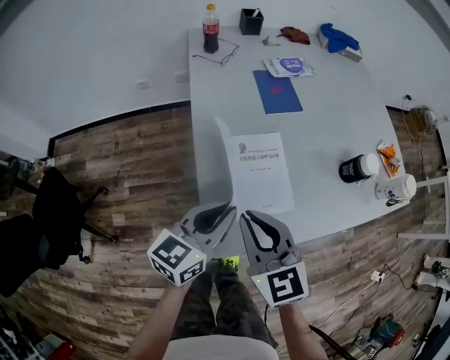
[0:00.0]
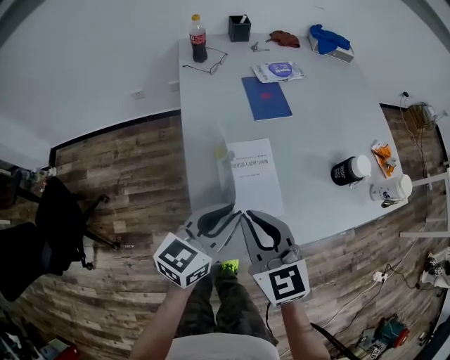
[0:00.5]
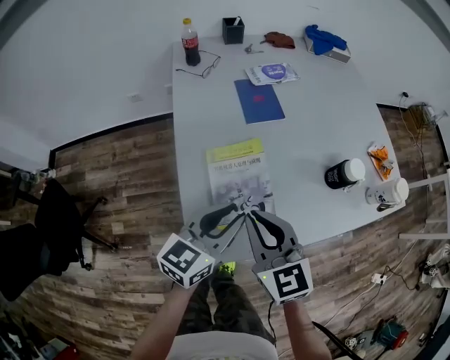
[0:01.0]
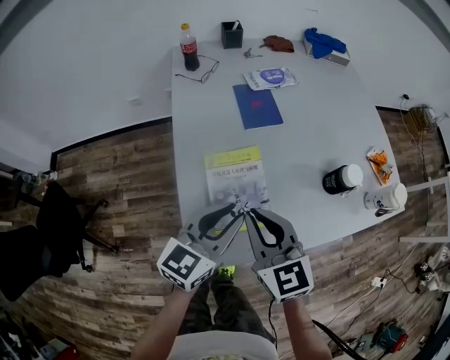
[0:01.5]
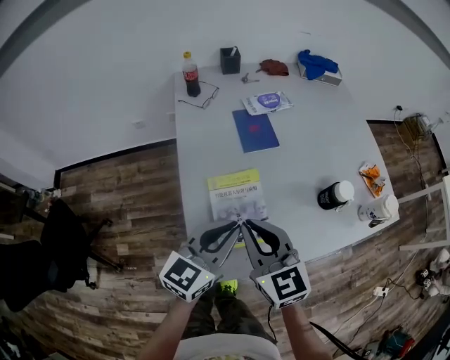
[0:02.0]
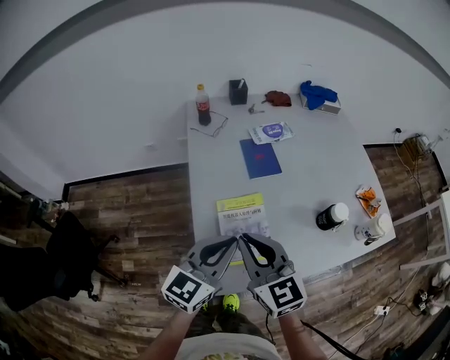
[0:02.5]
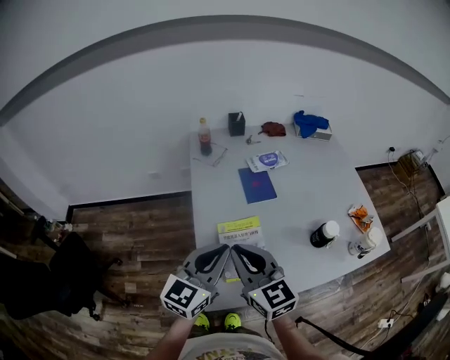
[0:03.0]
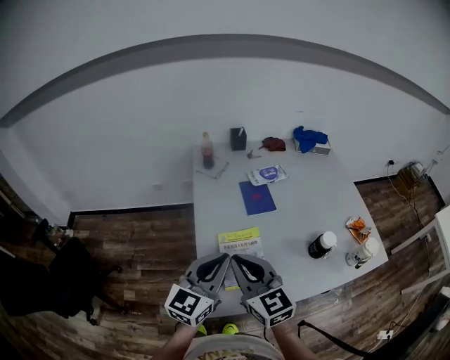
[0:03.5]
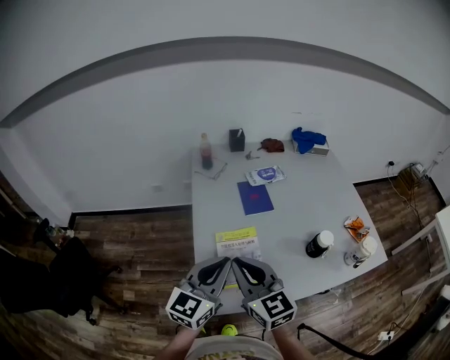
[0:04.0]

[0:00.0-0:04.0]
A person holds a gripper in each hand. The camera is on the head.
0:00.0 to 0:02.0: The left gripper is displaced to the right, upward and forward by some 10 cm; the right gripper heads to the right, forward and upward, covering approximately 10 cm.
0:02.0 to 0:04.0: Both grippers move upward and backward, roughly 15 cm.

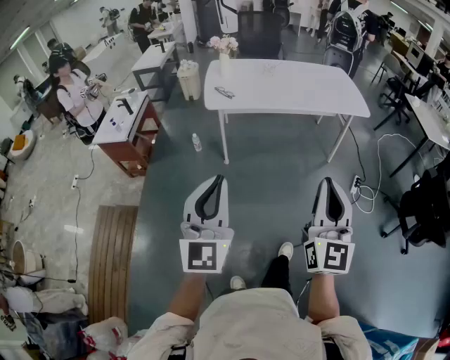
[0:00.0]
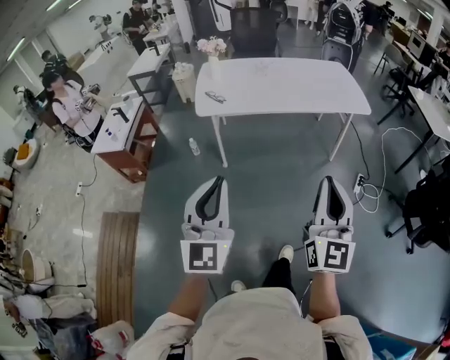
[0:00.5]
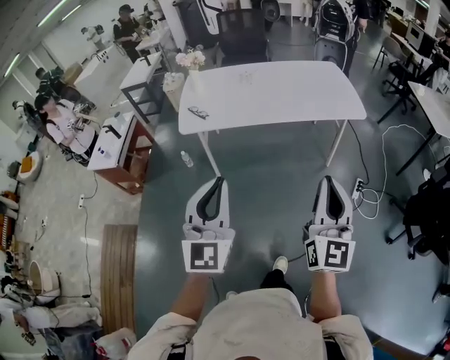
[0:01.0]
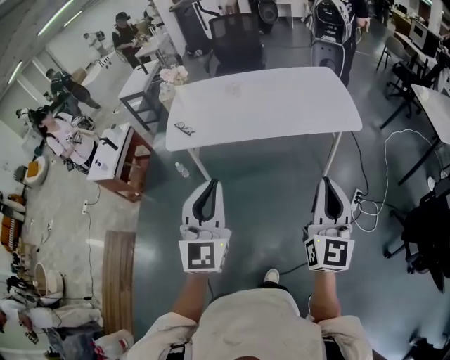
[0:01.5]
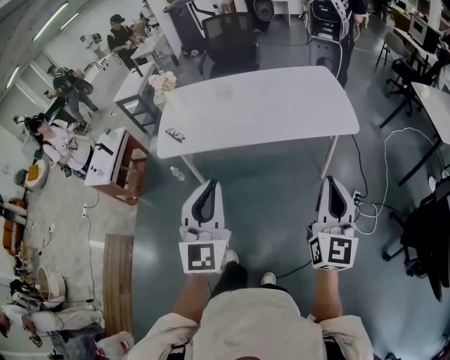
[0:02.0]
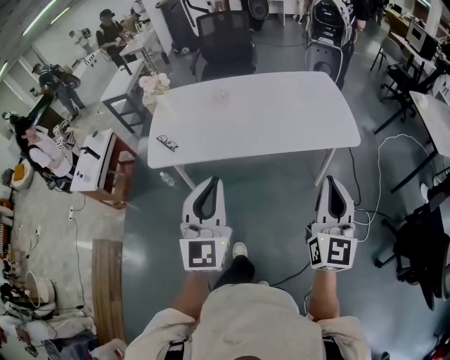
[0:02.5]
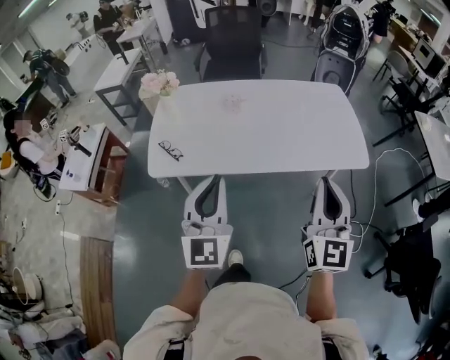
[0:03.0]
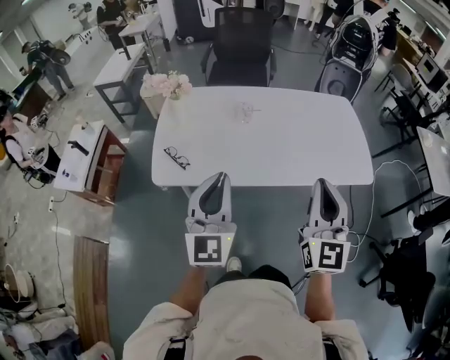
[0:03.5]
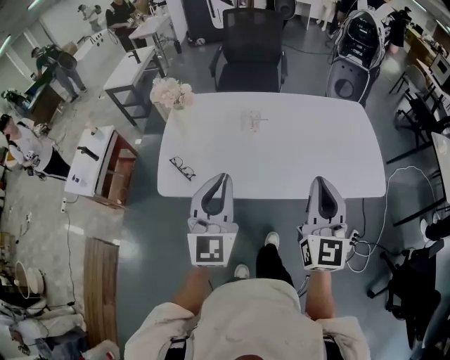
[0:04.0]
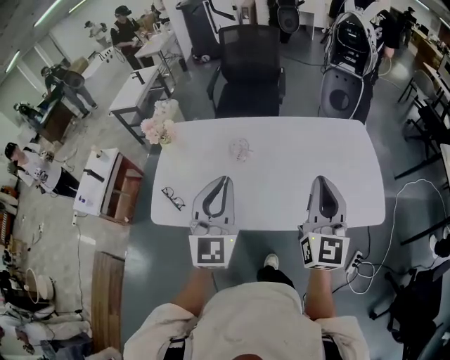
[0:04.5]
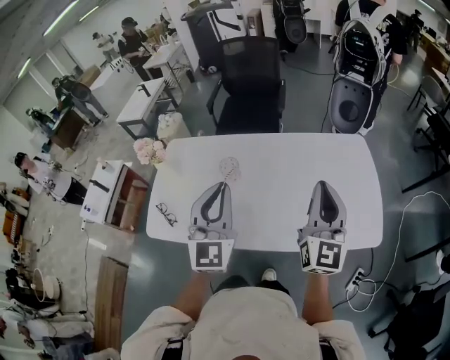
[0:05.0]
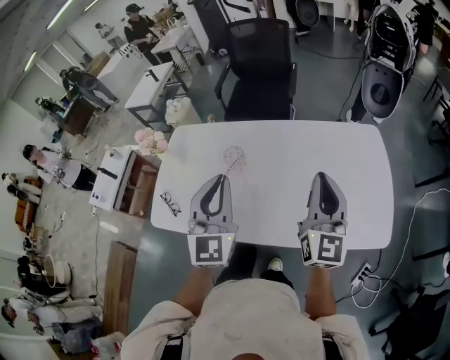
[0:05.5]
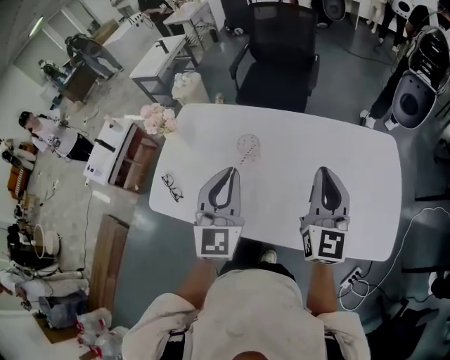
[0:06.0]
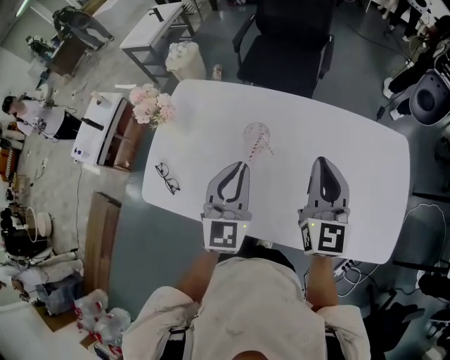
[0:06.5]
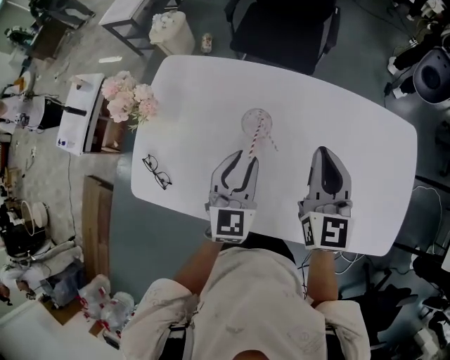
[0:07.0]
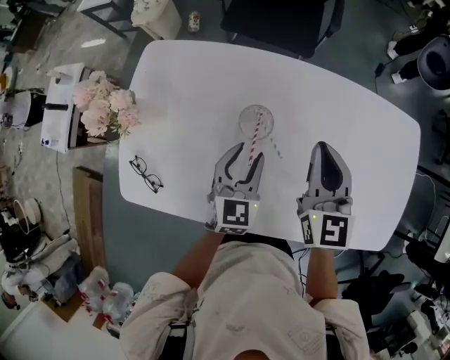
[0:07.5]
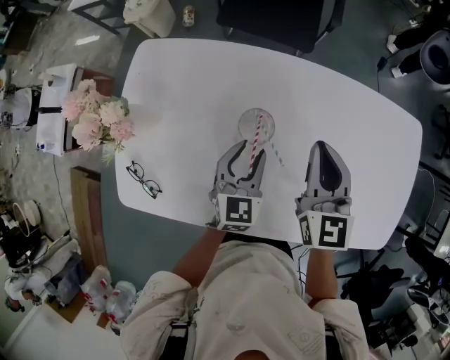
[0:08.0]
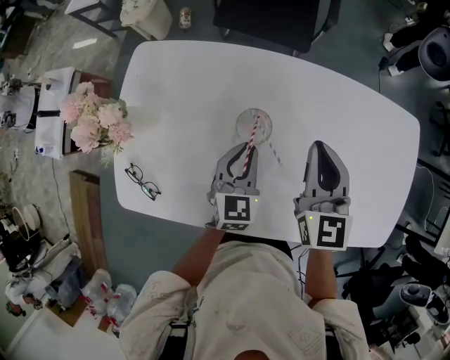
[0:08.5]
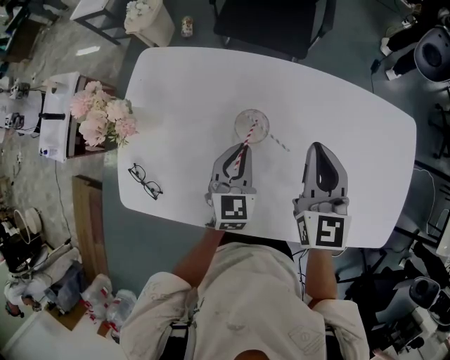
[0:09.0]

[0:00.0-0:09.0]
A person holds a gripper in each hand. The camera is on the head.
0:00.0 to 0:02.0: The two grippers travel together, forward and to the right, approximately 50 cm.
0:02.0 to 0:04.5: The pair of grippers is taken forward, approximately 50 cm.
0:04.5 to 0:07.0: The right gripper moves forward and downward, some 30 cm, and rotates some 20 degrees. The left gripper goes approximately 30 cm downward and forward, rotates about 30 degrees, and opens up.
0:07.0 to 0:09.0: The left gripper moves downward and forward, roughly 10 cm, while the right gripper moves about 5 cm.

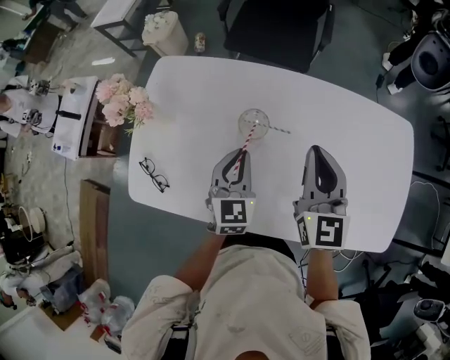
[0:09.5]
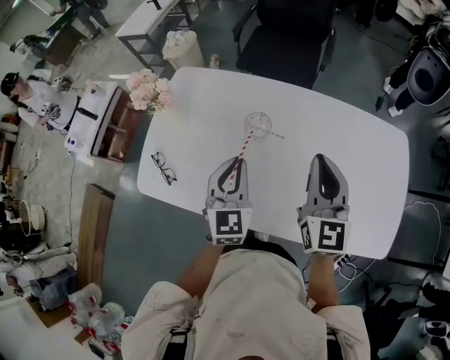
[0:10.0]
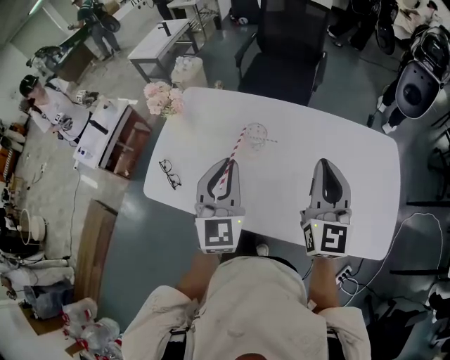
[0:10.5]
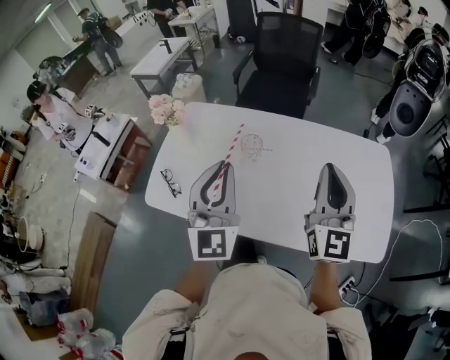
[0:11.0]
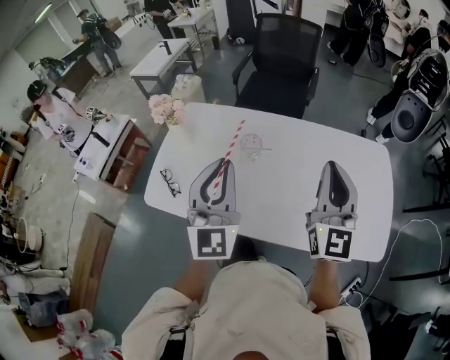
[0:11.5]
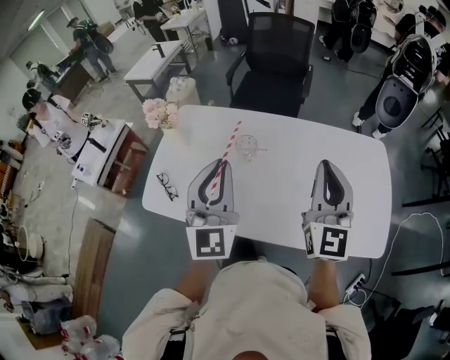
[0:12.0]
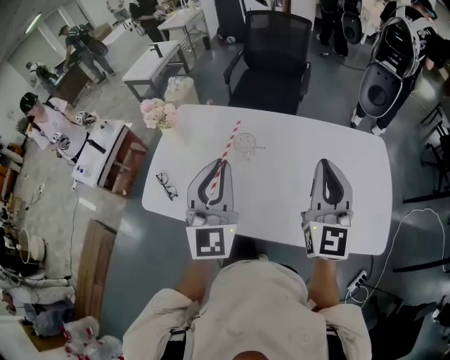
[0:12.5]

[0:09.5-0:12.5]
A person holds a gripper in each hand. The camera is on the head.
0:09.5 to 0:11.0: The left gripper is displaced upward and backward by some 30 cm, and angles its fingers upward, by some 30 degrees. The right gripper moves backward and upward, some 20 cm, and turns by some 20 degrees.
0:11.0 to 0:12.5: The grippers move only a little.

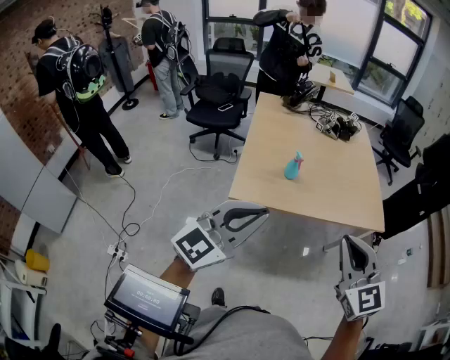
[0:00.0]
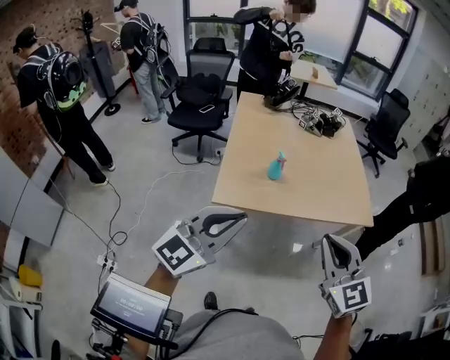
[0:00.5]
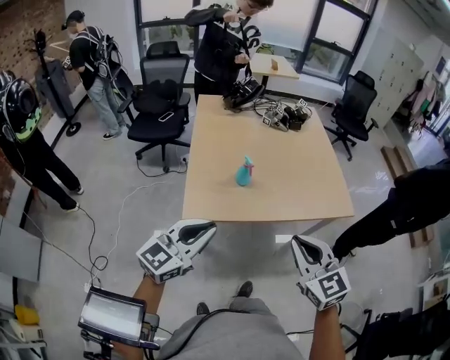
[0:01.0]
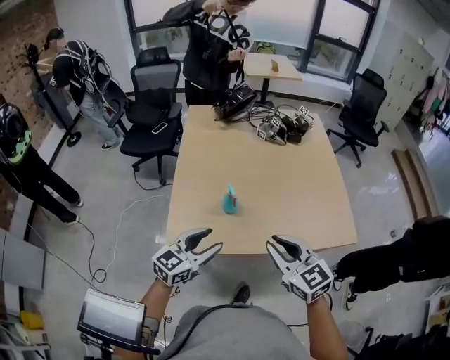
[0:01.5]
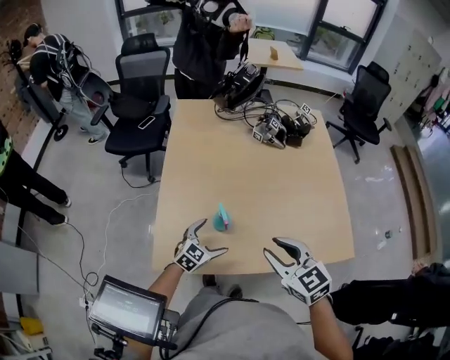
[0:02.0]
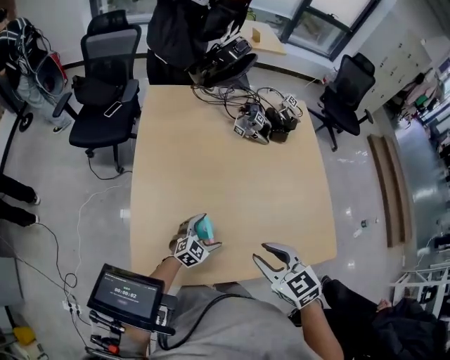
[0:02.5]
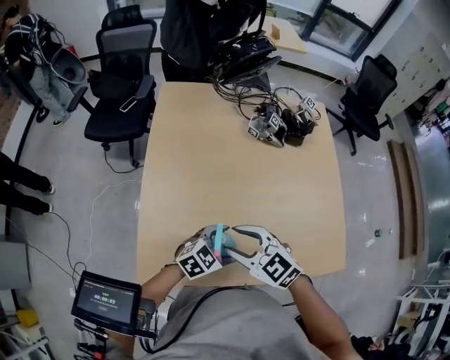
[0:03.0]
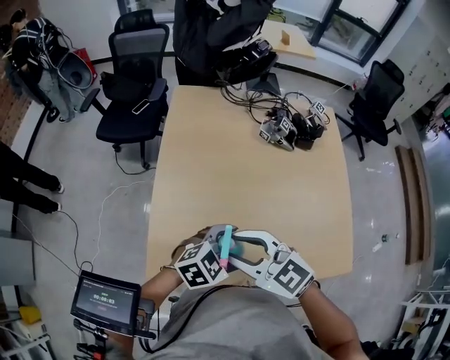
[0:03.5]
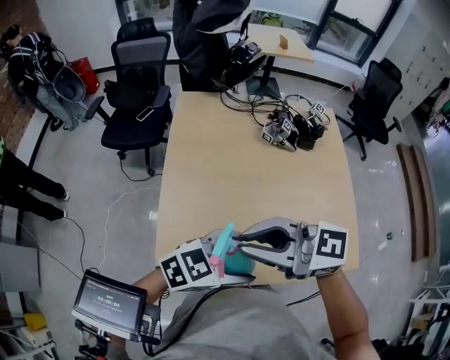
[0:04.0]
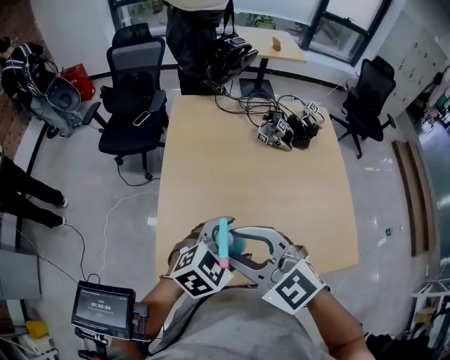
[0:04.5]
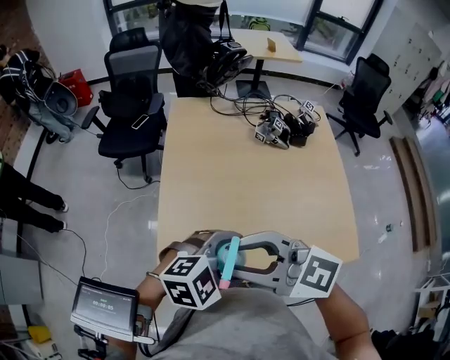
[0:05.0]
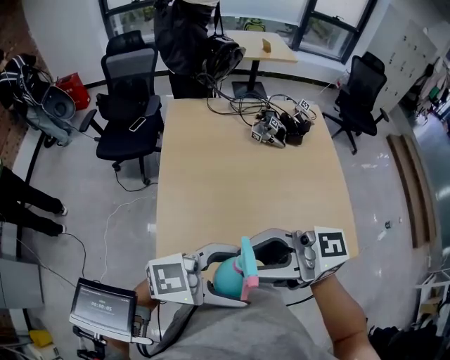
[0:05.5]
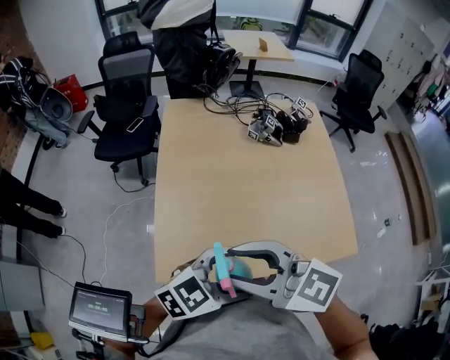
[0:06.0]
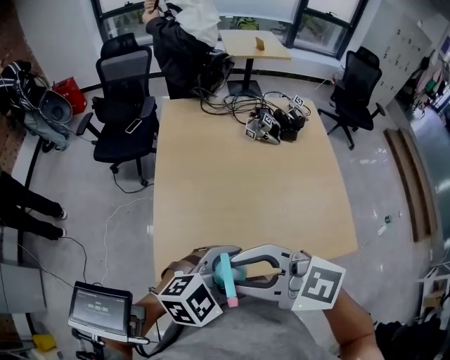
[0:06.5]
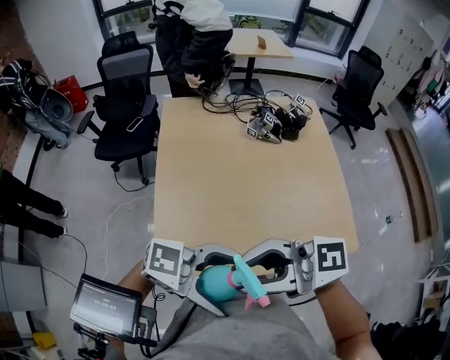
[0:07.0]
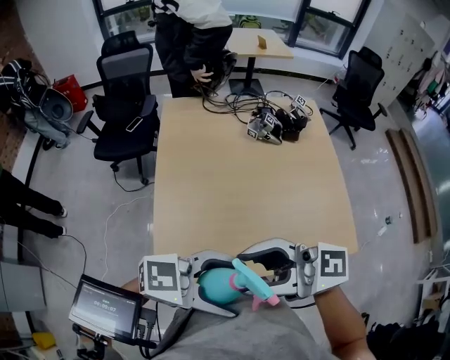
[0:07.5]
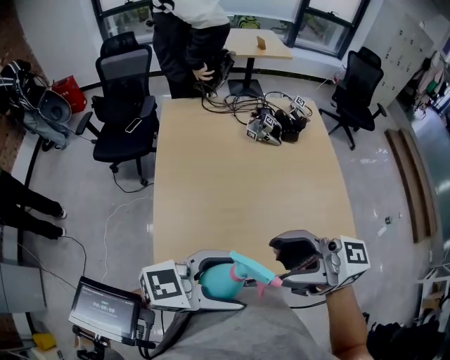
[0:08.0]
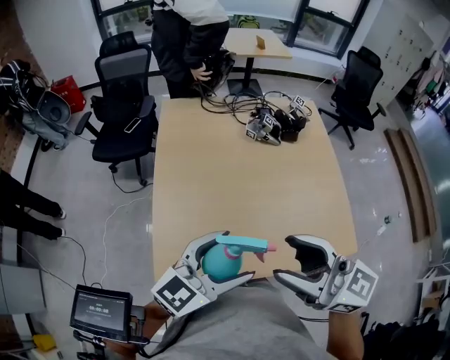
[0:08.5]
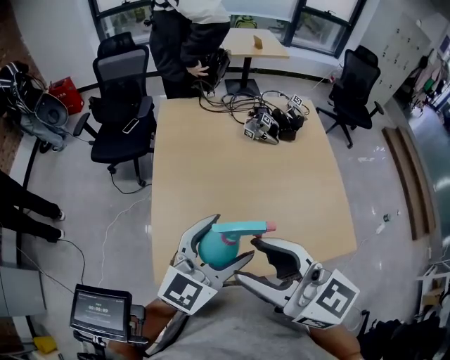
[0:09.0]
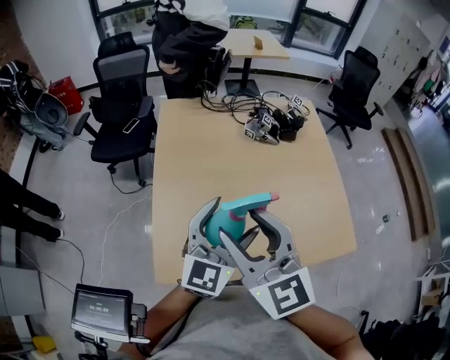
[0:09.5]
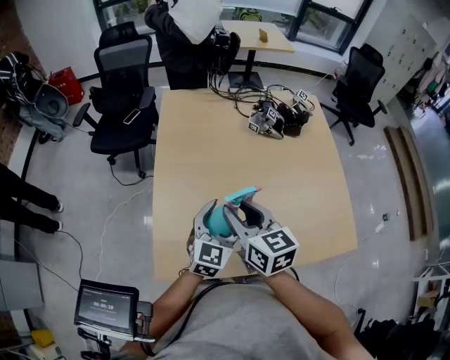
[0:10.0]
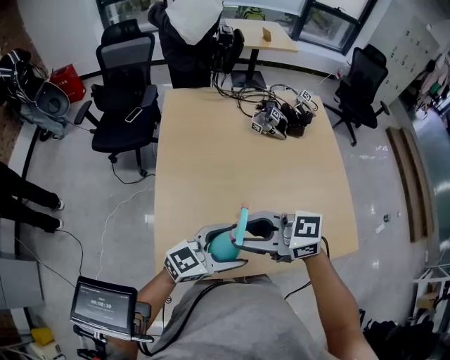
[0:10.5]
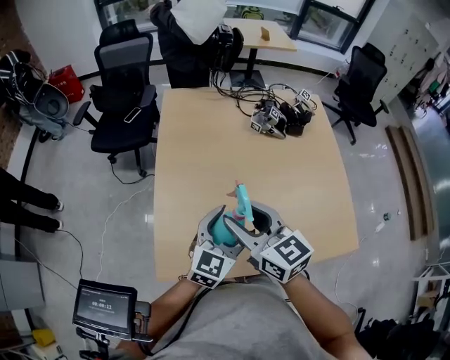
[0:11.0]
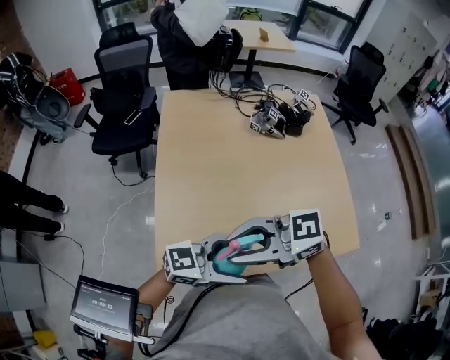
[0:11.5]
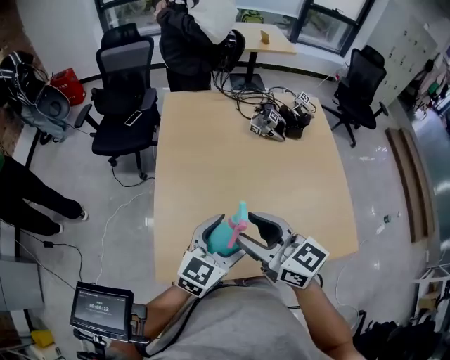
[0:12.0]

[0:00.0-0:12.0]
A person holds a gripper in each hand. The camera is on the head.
0:00.0 to 0:02.0: The two grippers go roughly 50 cm forward and downward. The left gripper angles its fingers downward, by about 40 degrees, and opens up. The right gripper rotates roughly 30 degrees, and opens up.
0:02.0 to 0:04.0: The right gripper shifts by approximately 20 cm, changes its angle by approximately 50 degrees, and closes its fingers, while the left gripper travels upward by some 25 cm, and swivels roughly 30 degrees.
0:04.0 to 0:06.0: The right gripper changes place by some 10 cm, and opens, while the left gripper travels upward and back again, approximately 5 cm each way.
0:06.0 to 0:08.0: The right gripper shifts by about 10 cm, and rotates approximately 30 degrees; the left gripper changes place by approximately 5 cm, and swivels some 20 degrees.
0:08.0 to 0:10.0: The left gripper ends up roughly 25 cm from where it was, and swivels approximately 60 degrees. Meanwhile the right gripper shifts some 20 cm downward, and tips its fingers downward by roughly 40 degrees.
0:10.0 to 0:12.0: The right gripper changes its angle by approximately 20 degrees; the left gripper is displaced upward by some 5 cm.
